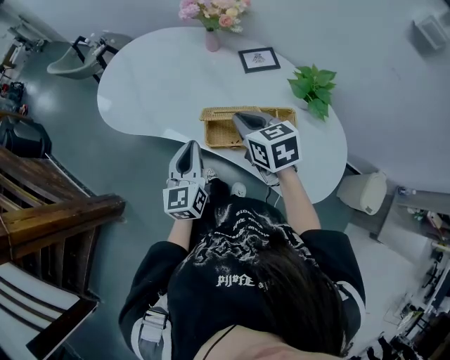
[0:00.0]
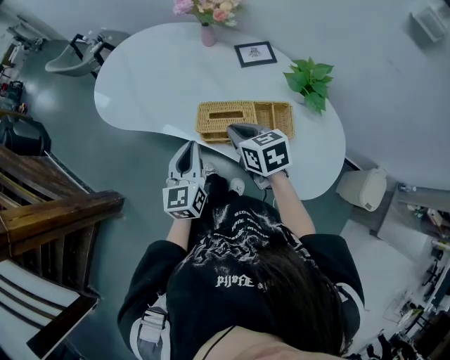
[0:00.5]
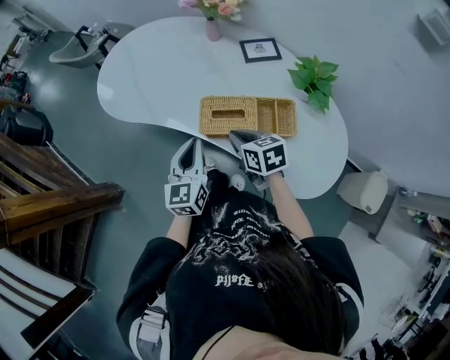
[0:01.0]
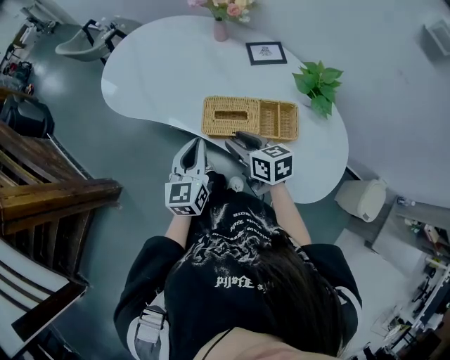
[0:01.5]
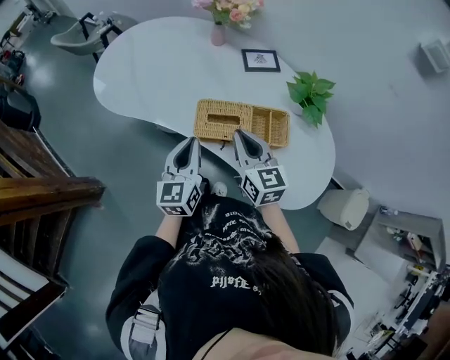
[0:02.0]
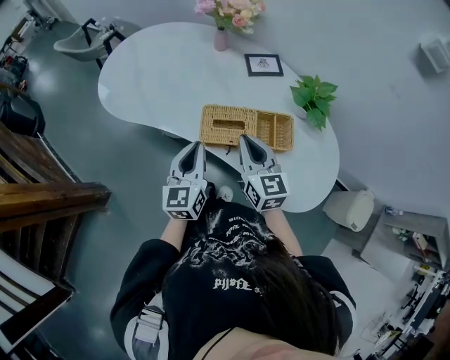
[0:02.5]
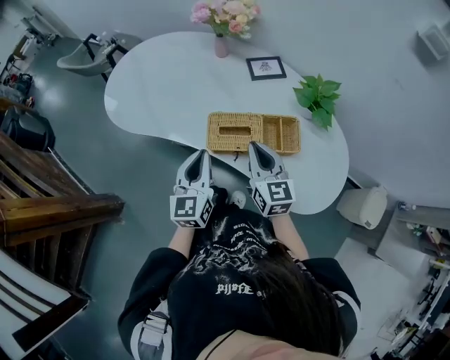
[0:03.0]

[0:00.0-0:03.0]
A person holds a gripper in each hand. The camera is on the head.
0:00.0 to 0:01.5: The right gripper is displaced downward and backward by roughly 10 cm, and opens.
0:01.5 to 0:03.0: The right gripper goes approximately 5 cm upward, rotates some 30 degrees, and closes.

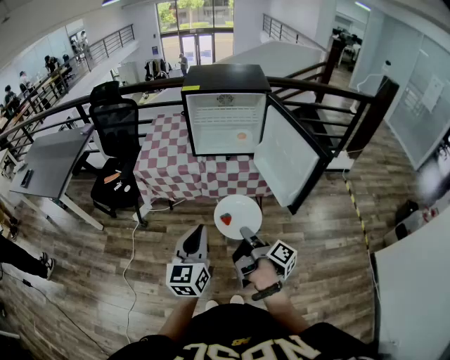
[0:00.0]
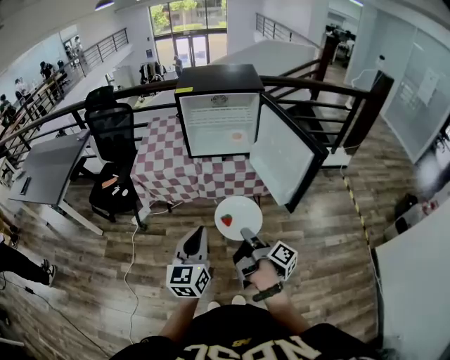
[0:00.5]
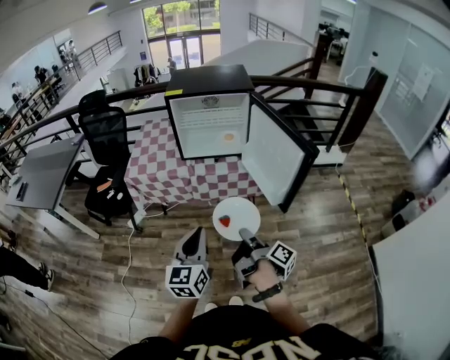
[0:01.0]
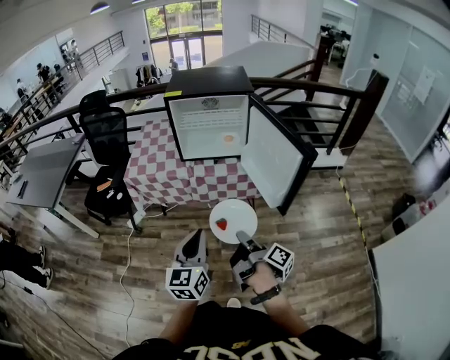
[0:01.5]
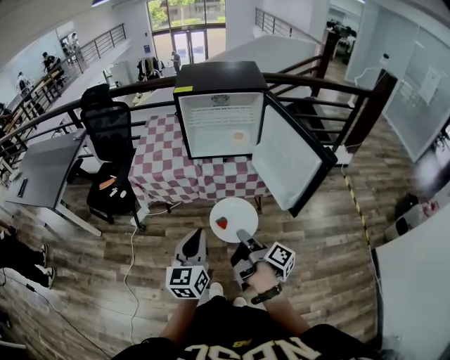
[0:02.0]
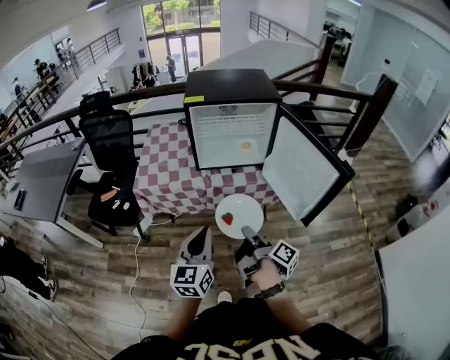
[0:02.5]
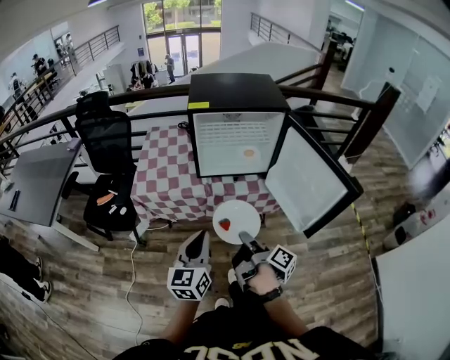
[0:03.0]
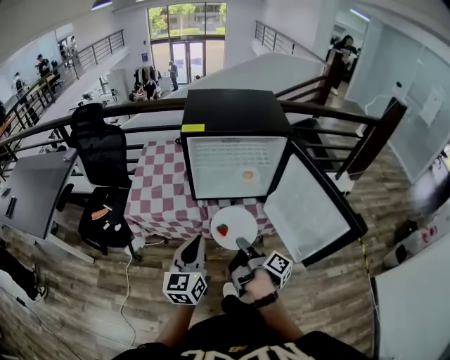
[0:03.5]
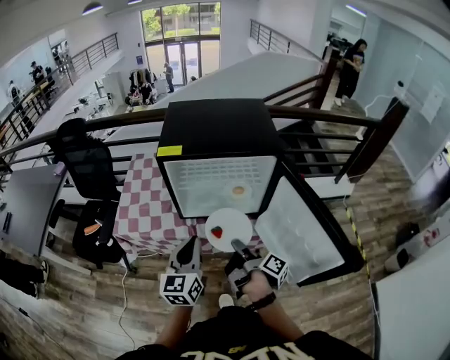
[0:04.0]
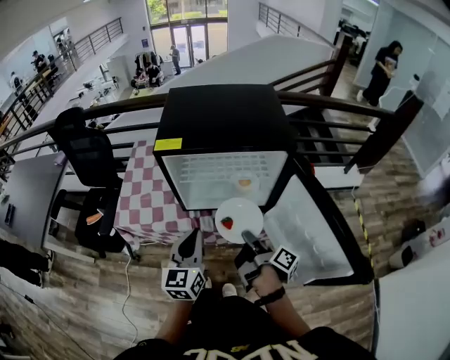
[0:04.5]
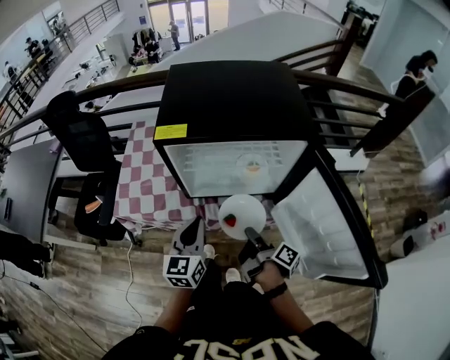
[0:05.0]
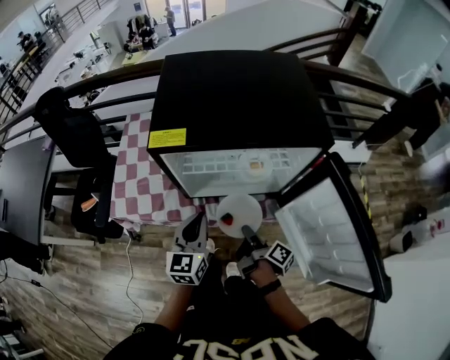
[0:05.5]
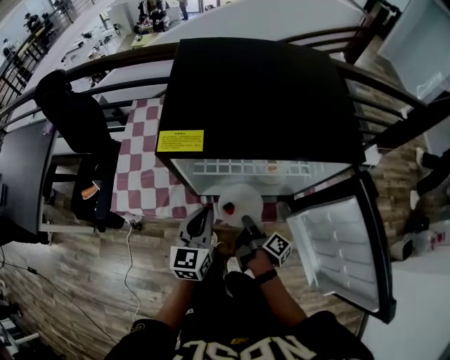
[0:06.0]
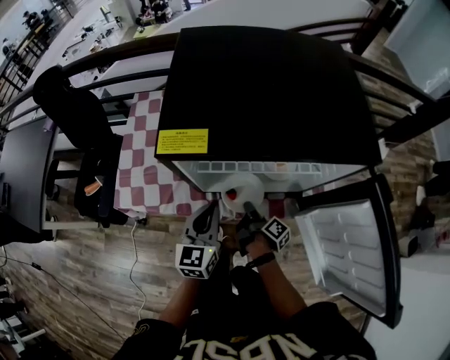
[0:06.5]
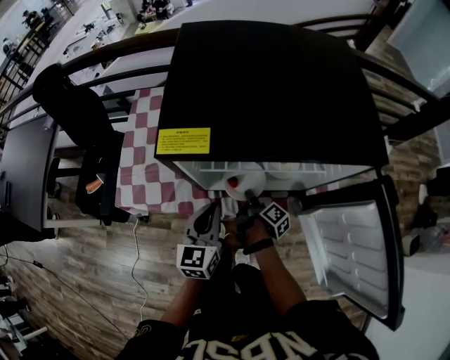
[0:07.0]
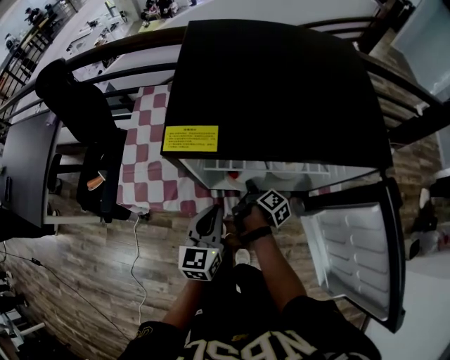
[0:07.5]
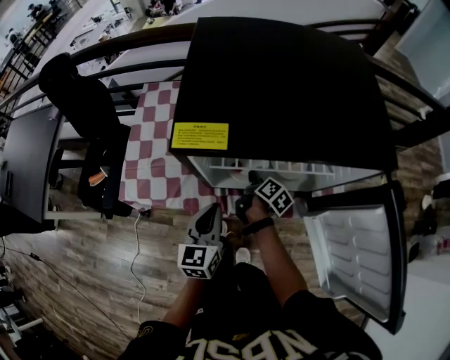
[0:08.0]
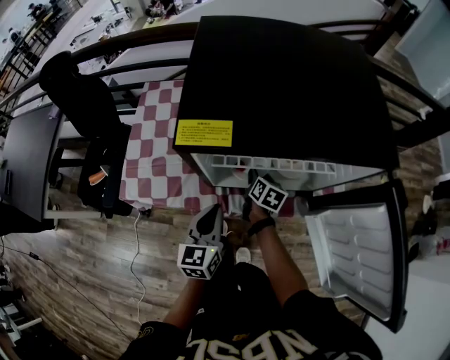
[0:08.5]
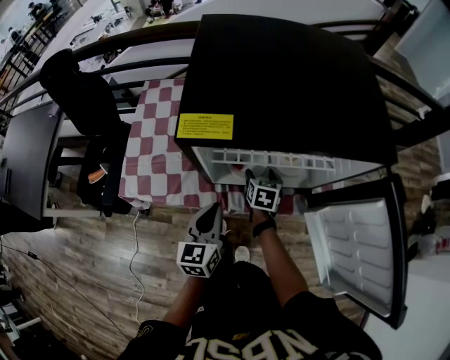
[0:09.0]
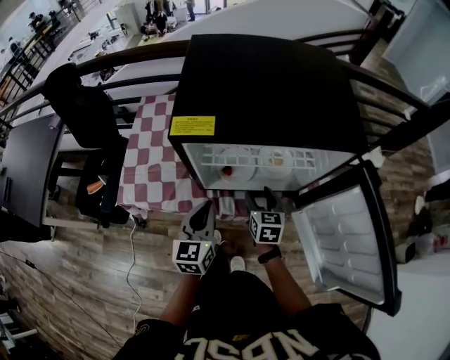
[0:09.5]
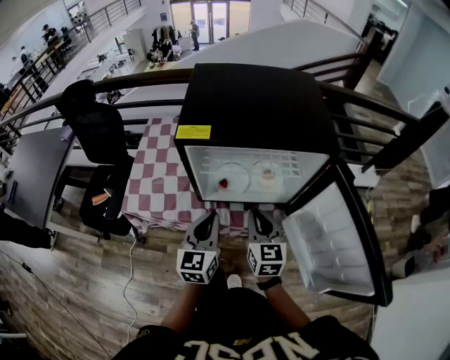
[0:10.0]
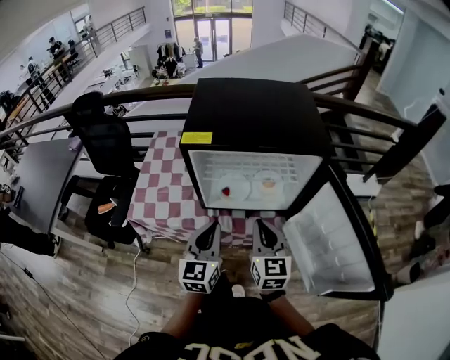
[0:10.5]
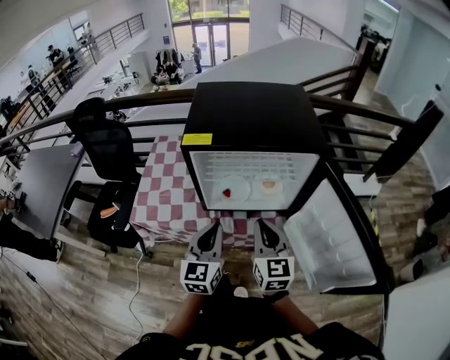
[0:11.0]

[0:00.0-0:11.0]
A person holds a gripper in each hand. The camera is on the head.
0:02.0 to 0:03.5: The left gripper changes place by about 20 cm.
0:03.5 to 0:05.5: The left gripper ends up approximately 25 cm from where it was.
0:05.5 to 0:07.5: The left gripper moves downward, approximately 5 cm.
0:09.0 to 0:11.0: The left gripper is displaced upward by roughly 15 cm.

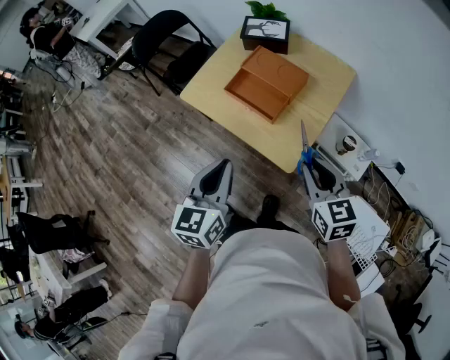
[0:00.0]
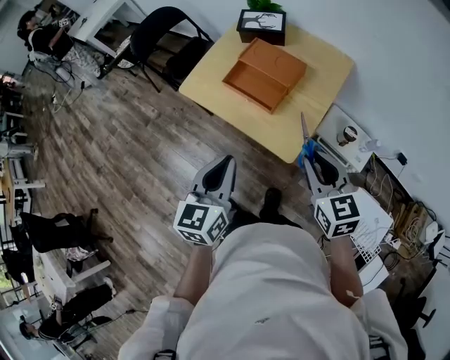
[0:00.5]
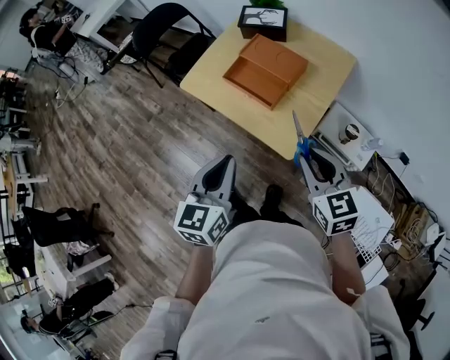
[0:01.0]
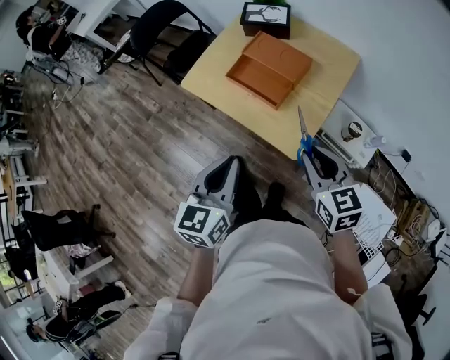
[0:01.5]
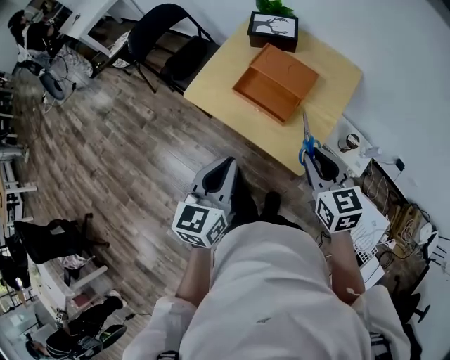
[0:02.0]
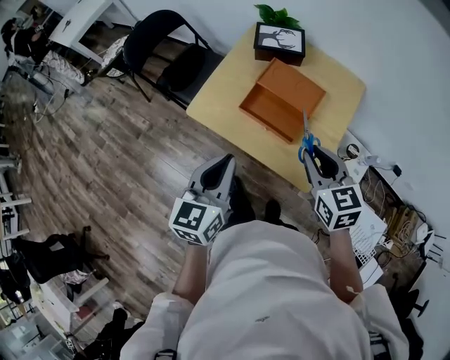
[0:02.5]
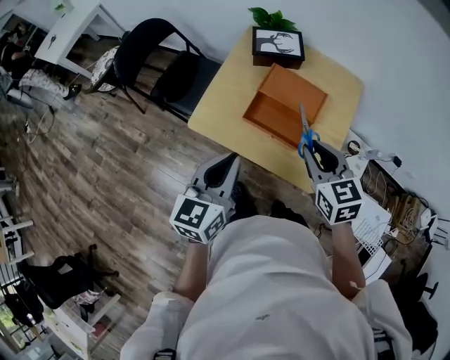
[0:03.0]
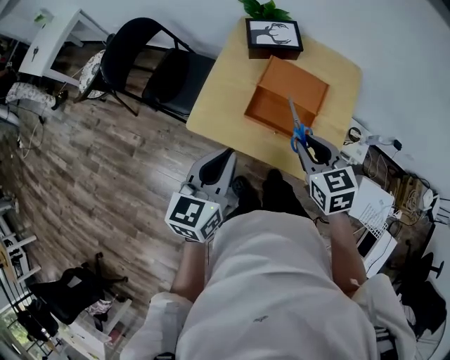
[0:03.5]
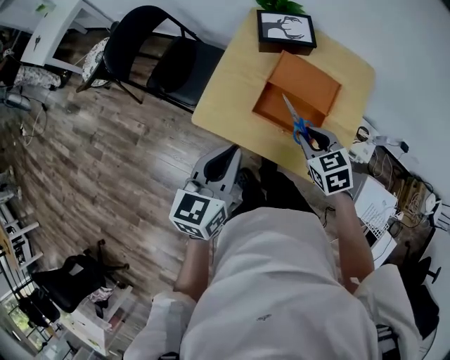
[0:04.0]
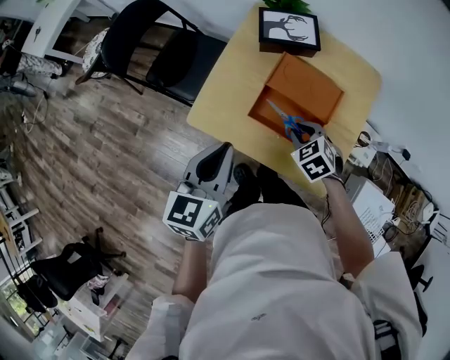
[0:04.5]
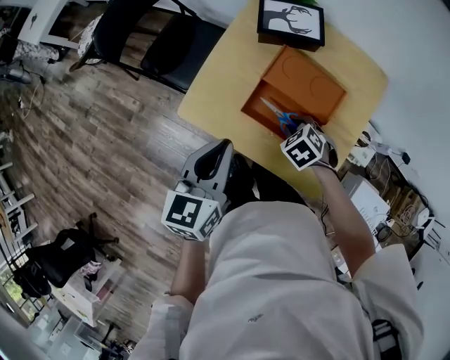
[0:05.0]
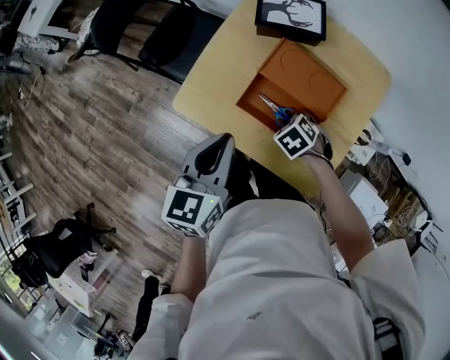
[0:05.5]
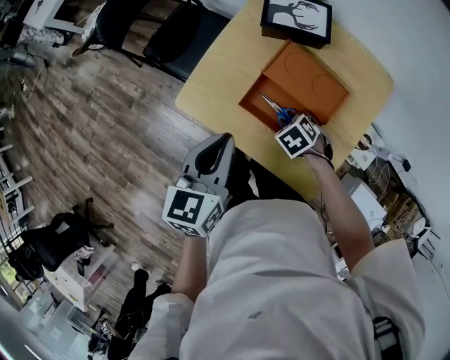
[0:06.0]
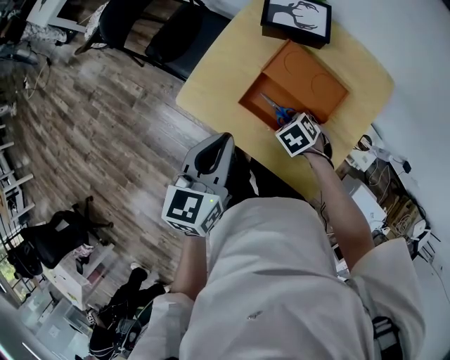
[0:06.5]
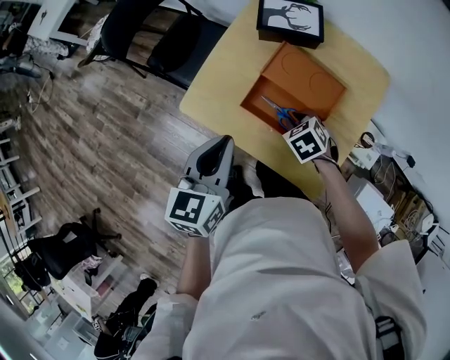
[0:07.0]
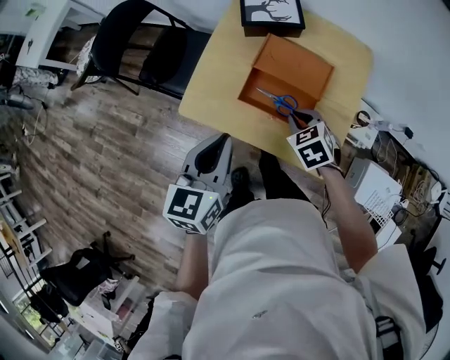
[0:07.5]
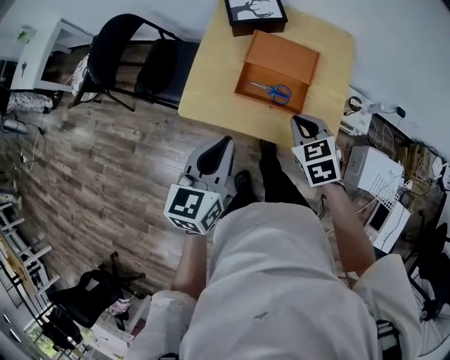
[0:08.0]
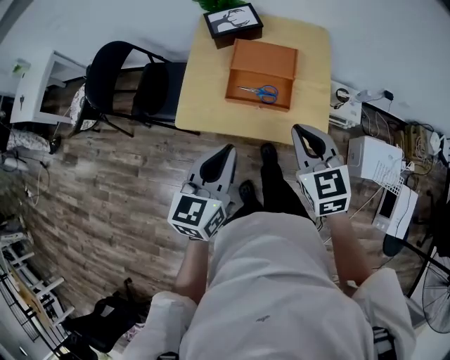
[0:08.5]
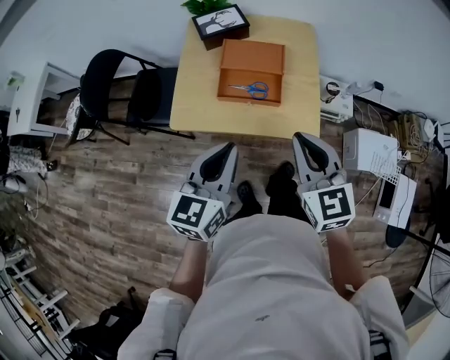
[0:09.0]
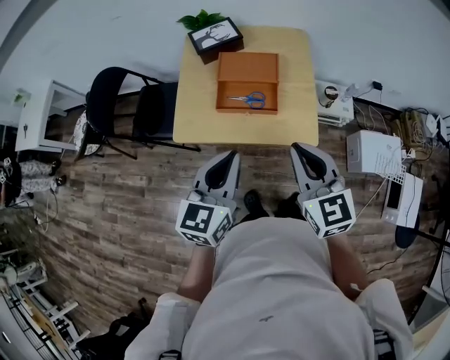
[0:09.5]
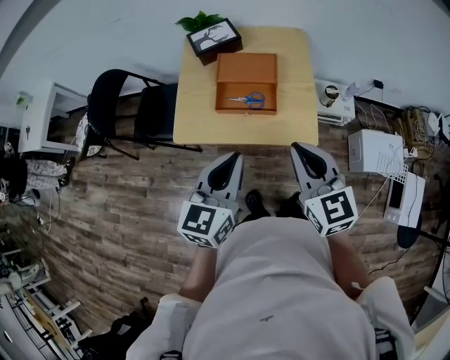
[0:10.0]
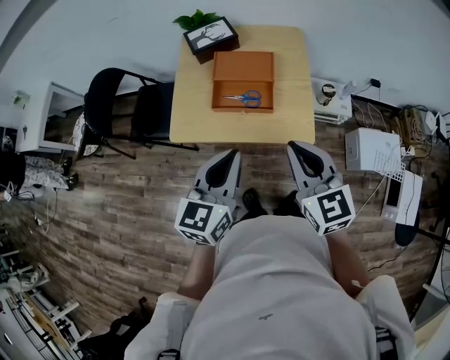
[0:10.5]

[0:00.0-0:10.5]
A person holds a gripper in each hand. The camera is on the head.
0:00.0 to 0:02.0: The right gripper moves to the left and forward, some 5 cm. Meanwhile the left gripper ends up roughly 5 cm from where it was.
0:02.0 to 0:04.0: The left gripper moves forward and to the left, approximately 20 cm, while the right gripper shifts approximately 25 cm forward, to the left and downward, and turns by roughly 20 degrees.
0:04.0 to 0:06.5: The left gripper changes place by some 10 cm. Meanwhile the right gripper goes some 15 cm downward, and changes its angle by about 30 degrees.
0:06.5 to 0:08.5: The right gripper shifts some 30 cm upward, and angles its fingers upward, by about 50 degrees. Meanwhile the left gripper ends up about 15 cm from where it was, and rotates approximately 30 degrees.
0:08.5 to 0:10.5: The left gripper moves to the right, approximately 5 cm. The right gripper goes approximately 5 cm backward.

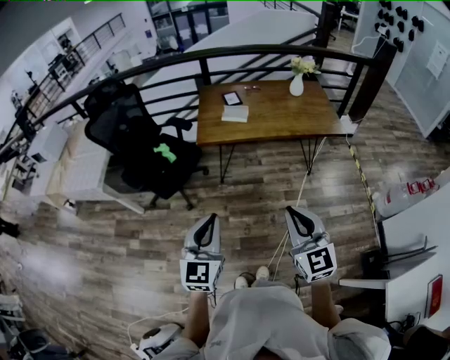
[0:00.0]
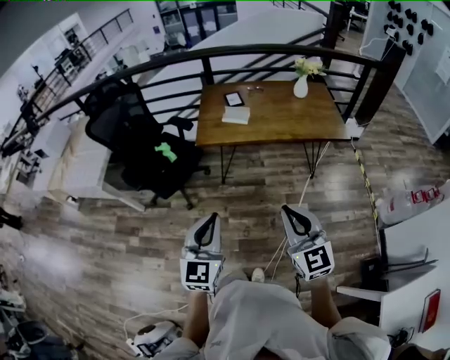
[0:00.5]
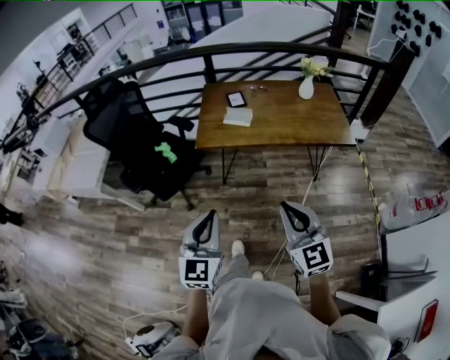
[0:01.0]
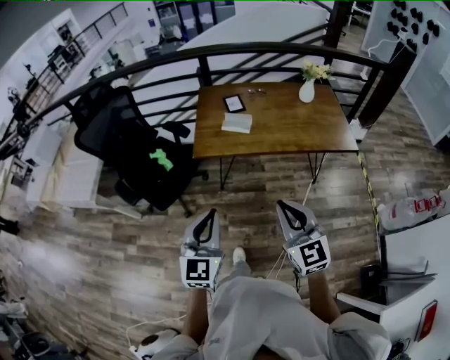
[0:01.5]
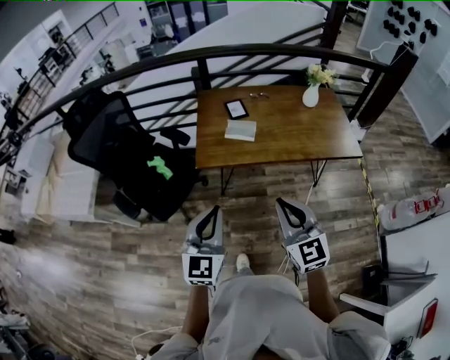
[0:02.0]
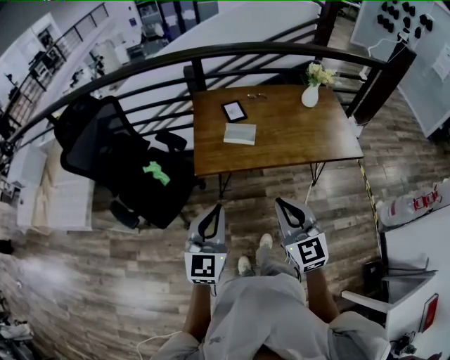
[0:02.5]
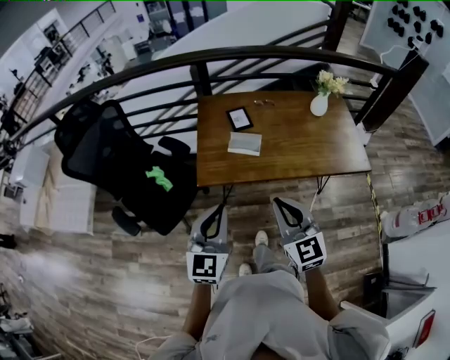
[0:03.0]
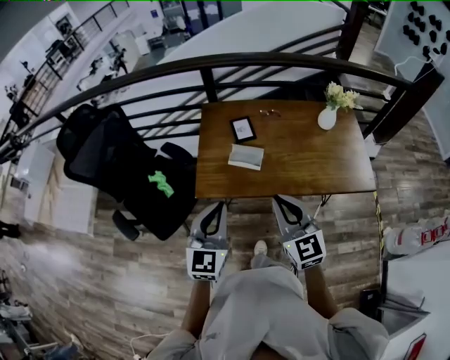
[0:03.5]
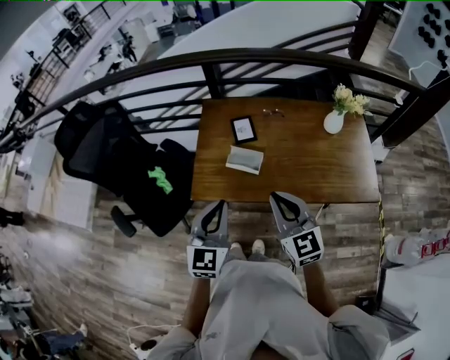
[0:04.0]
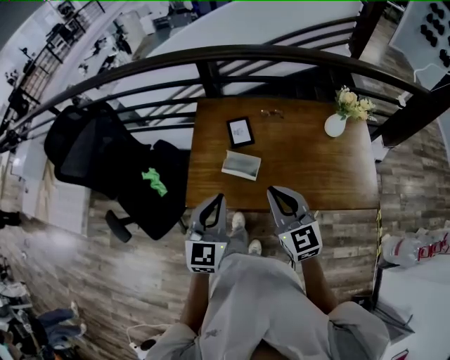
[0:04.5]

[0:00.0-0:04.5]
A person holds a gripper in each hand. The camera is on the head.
0:00.0 to 0:02.0: The two grippers go roughly 25 cm forward.
0:02.0 to 0:04.5: Both grippers move forward, about 35 cm.
